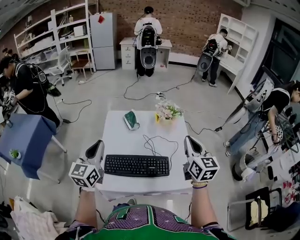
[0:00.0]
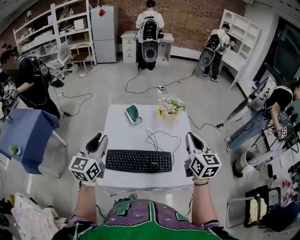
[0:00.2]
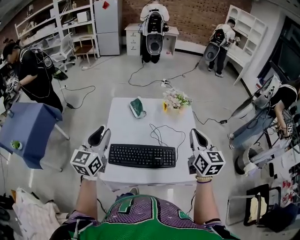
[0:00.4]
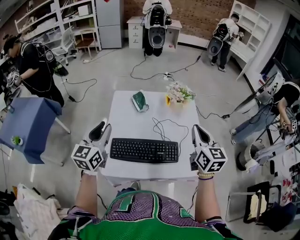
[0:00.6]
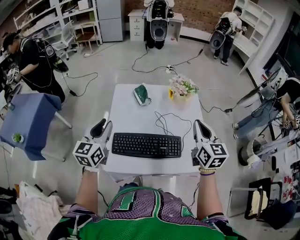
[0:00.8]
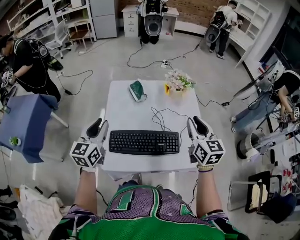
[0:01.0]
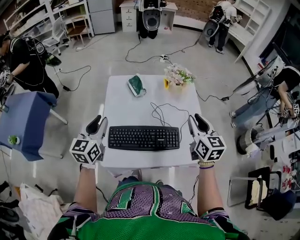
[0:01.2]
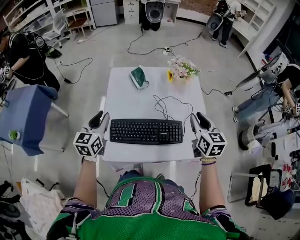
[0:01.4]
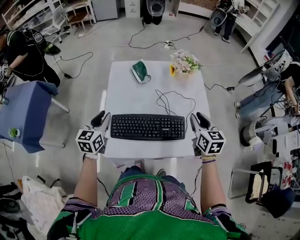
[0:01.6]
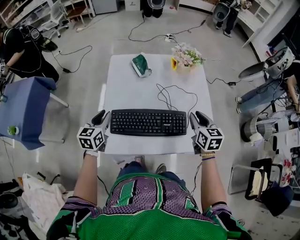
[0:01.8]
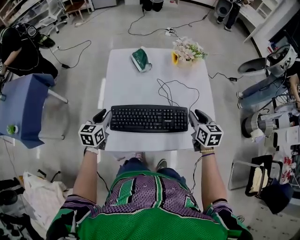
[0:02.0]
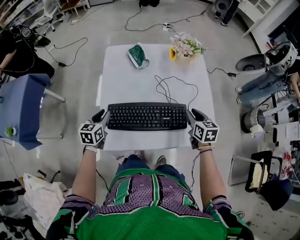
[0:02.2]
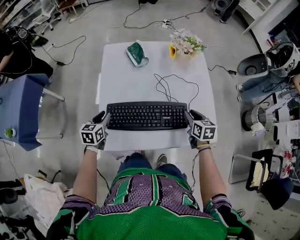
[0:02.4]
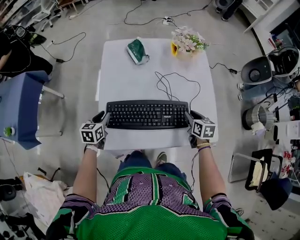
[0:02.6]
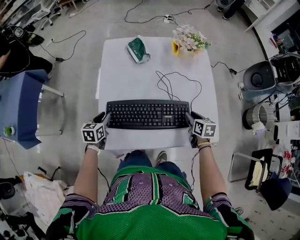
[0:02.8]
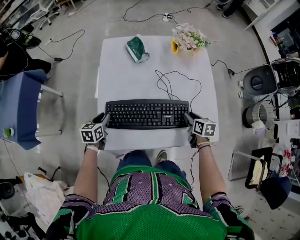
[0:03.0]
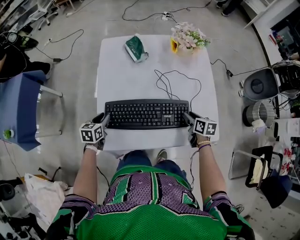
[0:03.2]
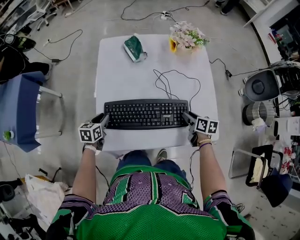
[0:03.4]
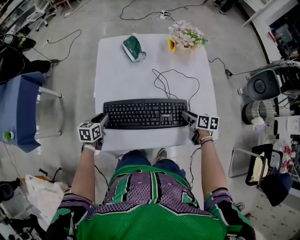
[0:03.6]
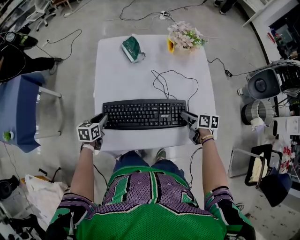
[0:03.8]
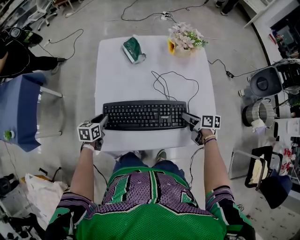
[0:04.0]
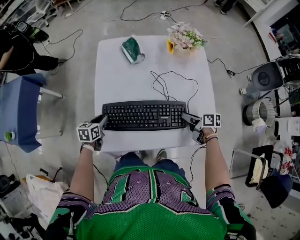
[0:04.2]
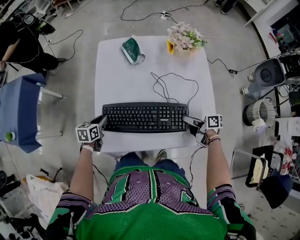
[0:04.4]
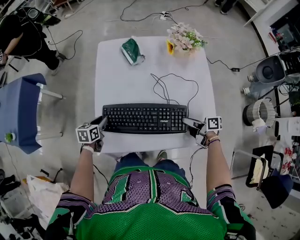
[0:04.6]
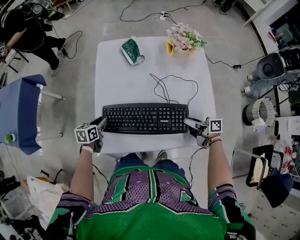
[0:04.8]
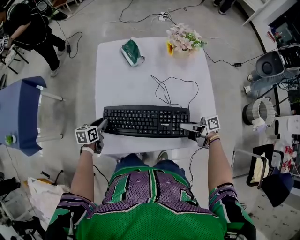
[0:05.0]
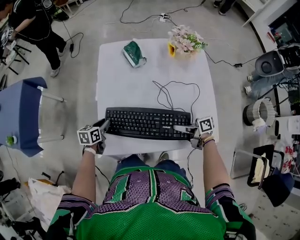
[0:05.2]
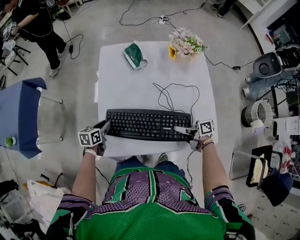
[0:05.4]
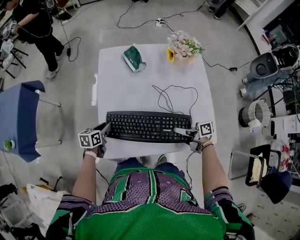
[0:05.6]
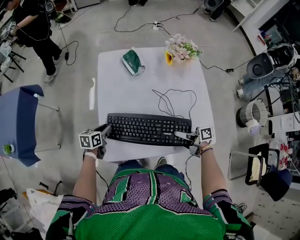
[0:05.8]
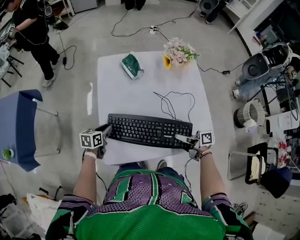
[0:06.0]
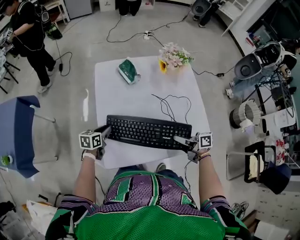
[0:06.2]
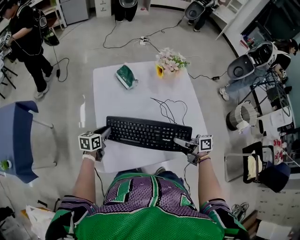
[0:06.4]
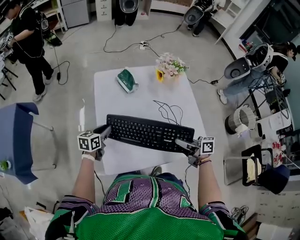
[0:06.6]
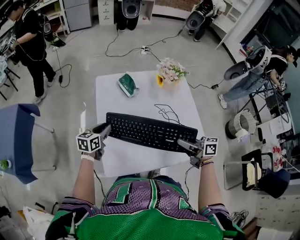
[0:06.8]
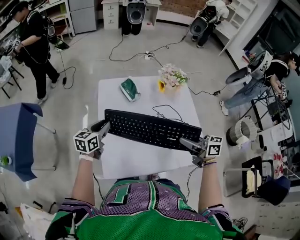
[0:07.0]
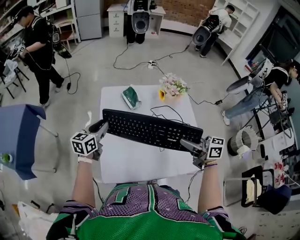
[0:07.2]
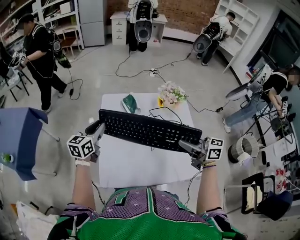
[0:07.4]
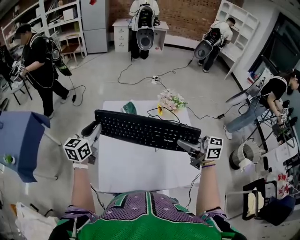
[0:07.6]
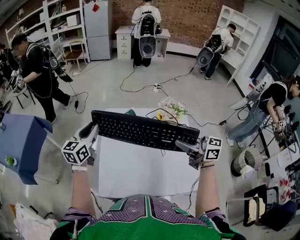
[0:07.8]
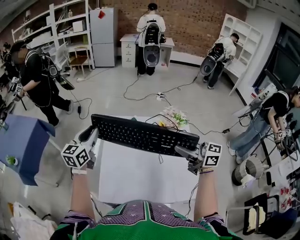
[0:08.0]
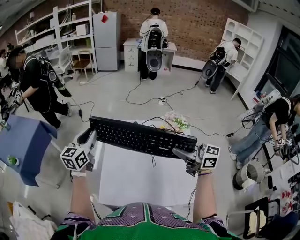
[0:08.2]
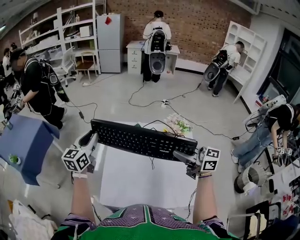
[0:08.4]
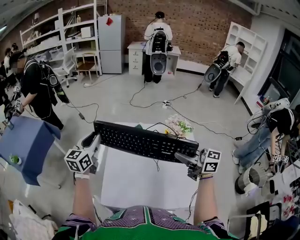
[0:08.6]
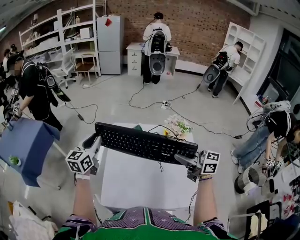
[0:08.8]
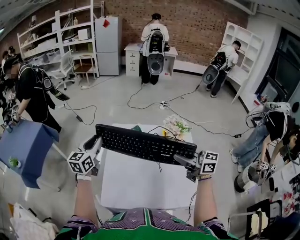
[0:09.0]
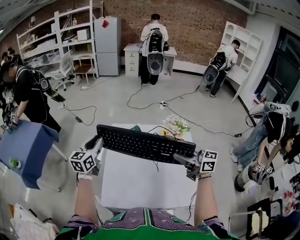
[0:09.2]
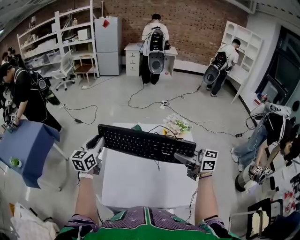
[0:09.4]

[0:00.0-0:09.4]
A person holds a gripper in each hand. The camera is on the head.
0:00.0 to 0:01.6: Both grippers move downward, roughly 20 cm. The left gripper opens. Meanwhile the right gripper opens its fingers.
0:01.6 to 0:03.2: Both grippers travel together downward, roughly 20 cm. The right gripper changes its angle by roughly 30 degrees. The left gripper changes its angle by roughly 30 degrees.
0:03.2 to 0:04.8: The right gripper heads upward, covering approximately 5 cm, and points its fingers approximately 30 degrees further upward.
0:04.8 to 0:06.2: The right gripper heads to the left, covering some 10 cm.
0:06.2 to 0:07.8: Both grippers travel together upward, about 30 cm. The left gripper angles its fingers upward, by roughly 30 degrees. Meanwhile the right gripper rotates around the line of its fingers by roughly 40 degrees, counterclockwise from behind.
0:07.8 to 0:09.4: The grippers make only small movements.

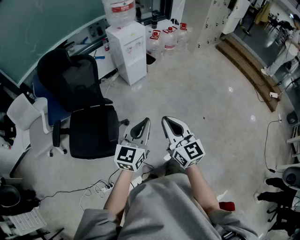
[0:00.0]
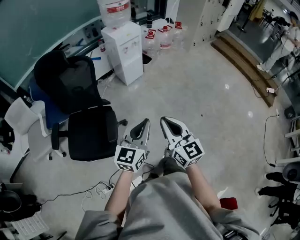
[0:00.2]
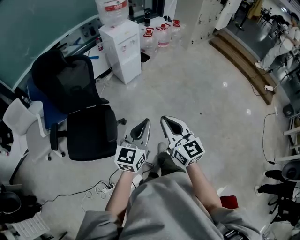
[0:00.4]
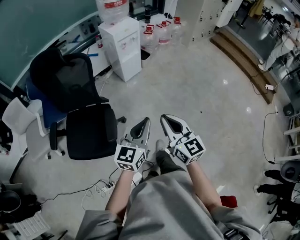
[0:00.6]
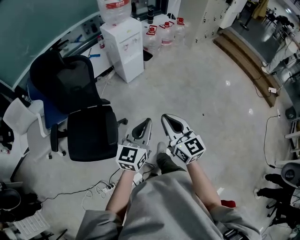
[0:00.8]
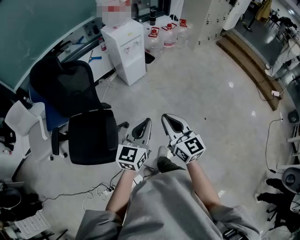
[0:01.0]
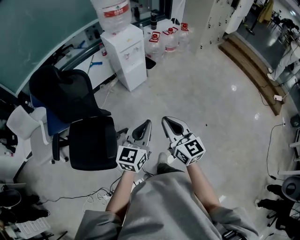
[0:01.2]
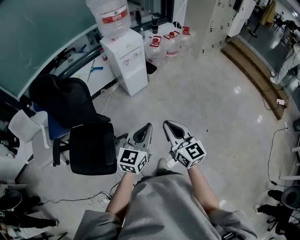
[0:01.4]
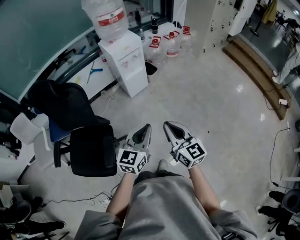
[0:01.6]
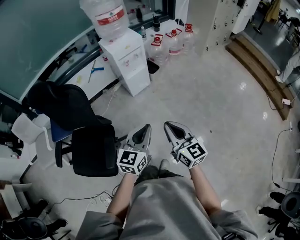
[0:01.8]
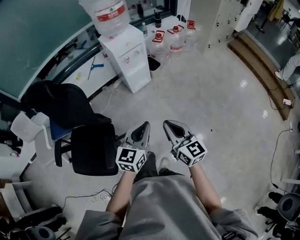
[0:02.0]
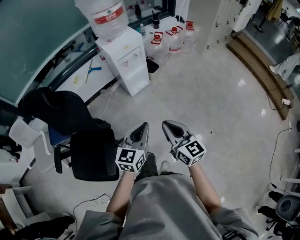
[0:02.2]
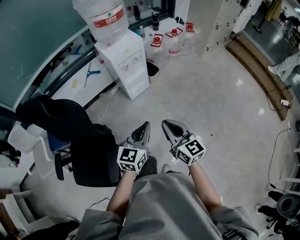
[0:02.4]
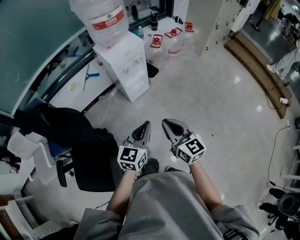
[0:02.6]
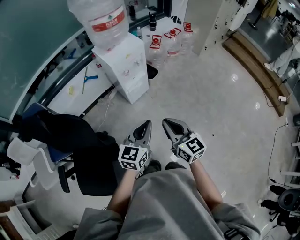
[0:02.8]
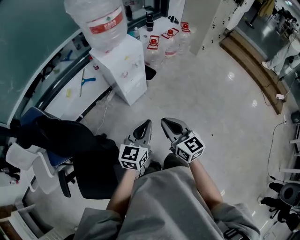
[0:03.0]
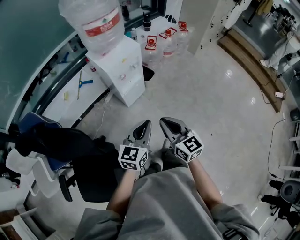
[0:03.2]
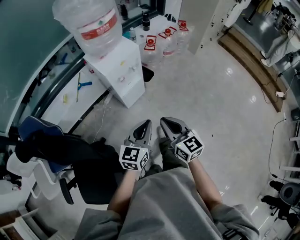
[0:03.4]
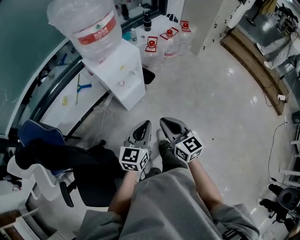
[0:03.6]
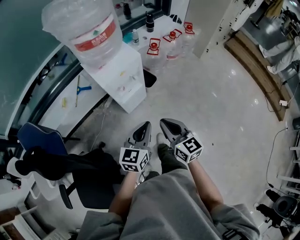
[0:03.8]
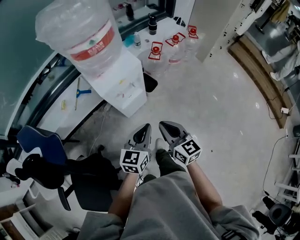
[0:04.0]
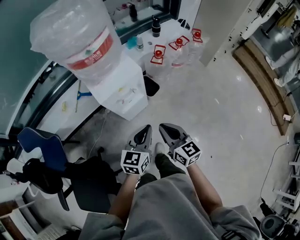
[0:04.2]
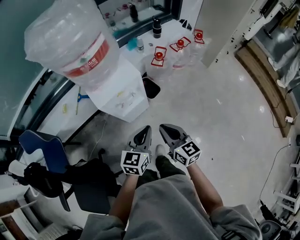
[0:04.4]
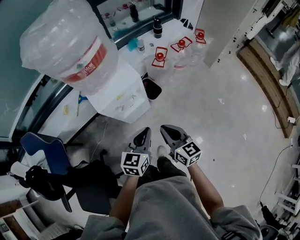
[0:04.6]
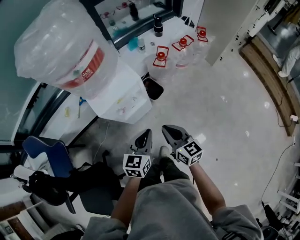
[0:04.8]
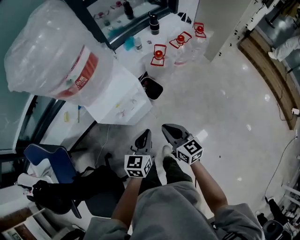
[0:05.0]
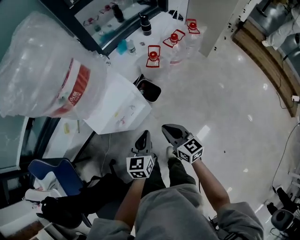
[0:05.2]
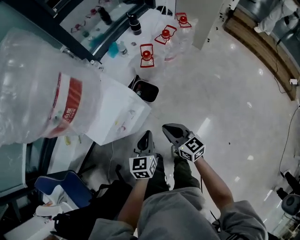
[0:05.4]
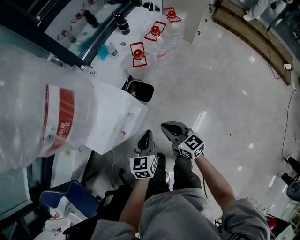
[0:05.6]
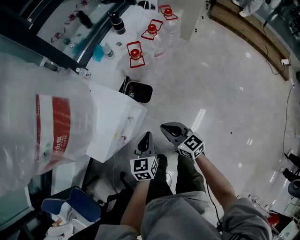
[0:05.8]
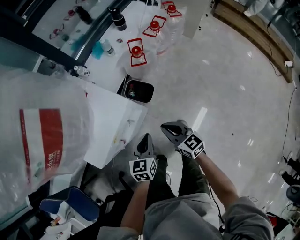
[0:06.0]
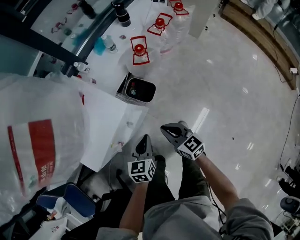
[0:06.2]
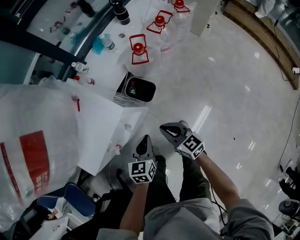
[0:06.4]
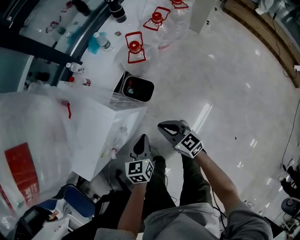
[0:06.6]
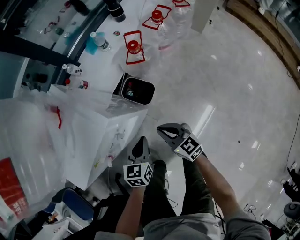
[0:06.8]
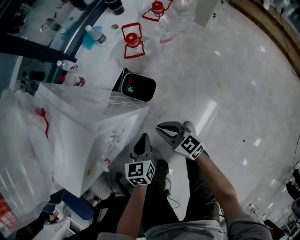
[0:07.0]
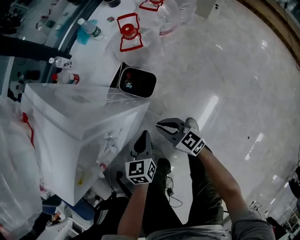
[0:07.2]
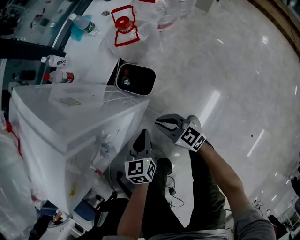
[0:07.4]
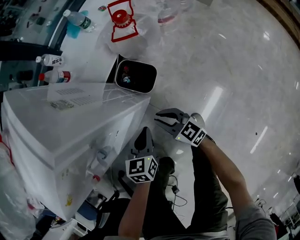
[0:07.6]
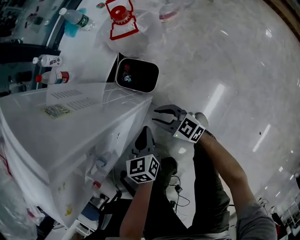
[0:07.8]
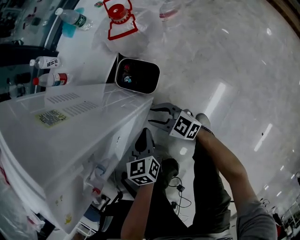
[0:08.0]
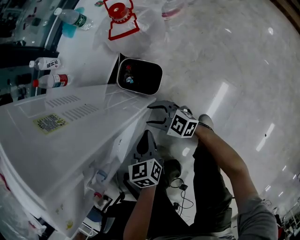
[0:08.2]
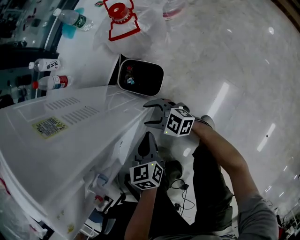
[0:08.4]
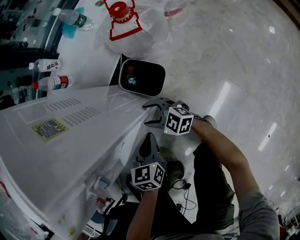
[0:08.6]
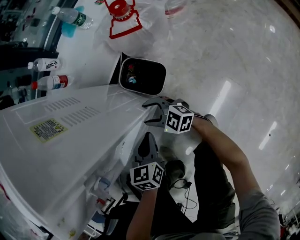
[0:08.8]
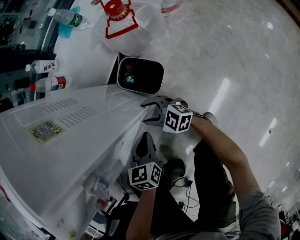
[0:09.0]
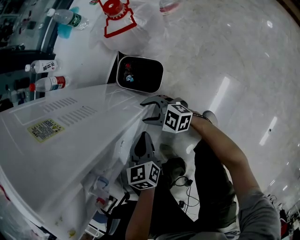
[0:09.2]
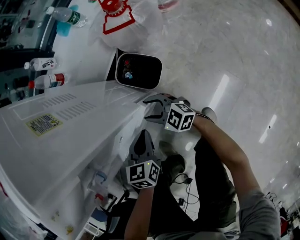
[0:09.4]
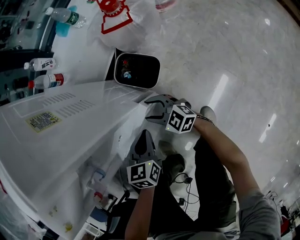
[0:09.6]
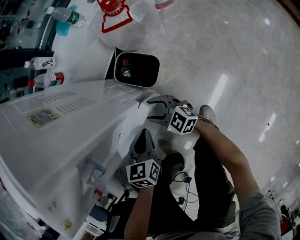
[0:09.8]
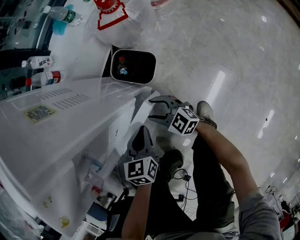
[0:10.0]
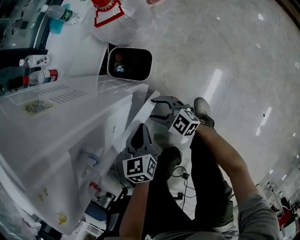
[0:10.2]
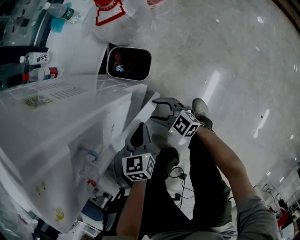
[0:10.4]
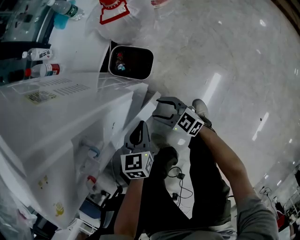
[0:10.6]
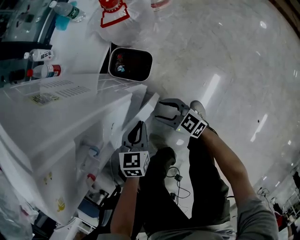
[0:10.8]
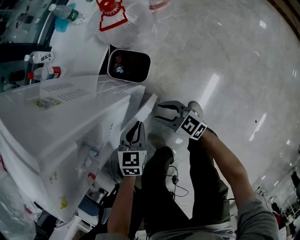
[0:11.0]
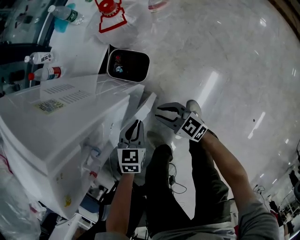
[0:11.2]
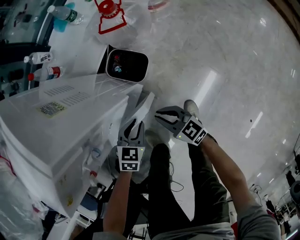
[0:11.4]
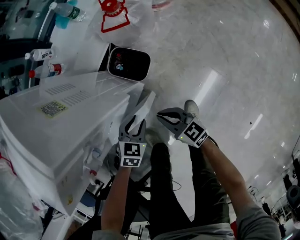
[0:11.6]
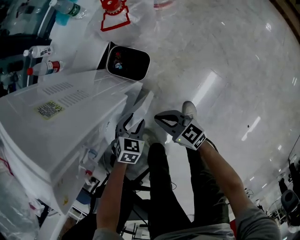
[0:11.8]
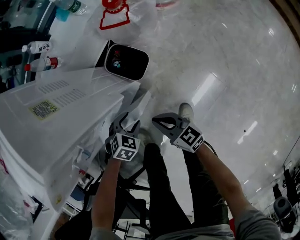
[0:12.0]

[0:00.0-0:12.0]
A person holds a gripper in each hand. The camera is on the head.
0:00.0 to 0:01.6: Both grippers travel together forward, approximately 20 cm.
0:01.6 to 0:03.0: The two grippers go approximately 25 cm forward.
0:03.0 to 0:04.4: Both grippers travel together forward, about 30 cm.
0:04.4 to 0:06.0: Both grippers move downward and forward, roughly 25 cm.
0:06.0 to 0:07.6: The two grippers go approximately 25 cm downward.
0:07.6 to 0:09.0: The right gripper heads forward, downward and to the left, covering approximately 15 cm, changes its angle by about 30 degrees, and opens its fingers; the left gripper is displaced downward by about 5 cm.
0:09.0 to 0:10.4: The right gripper travels backward by about 10 cm, and turns by some 20 degrees.
0:10.4 to 0:12.0: The left gripper changes place by some 5 cm, rotates roughly 40 degrees, and opens its fingers. The right gripper moves upward and to the right, roughly 10 cm, changes its angle by approximately 30 degrees, and closes up.

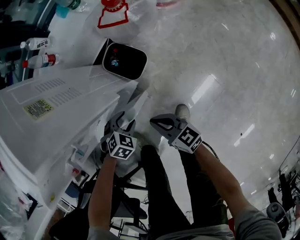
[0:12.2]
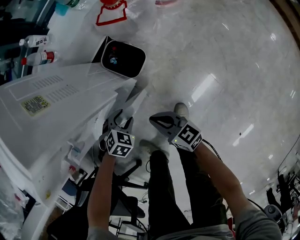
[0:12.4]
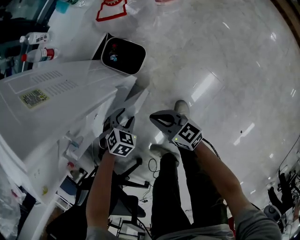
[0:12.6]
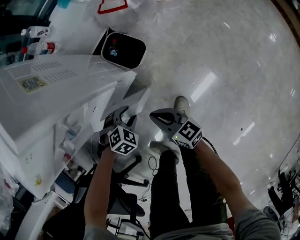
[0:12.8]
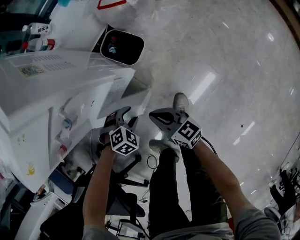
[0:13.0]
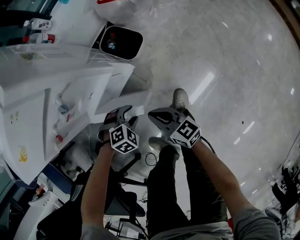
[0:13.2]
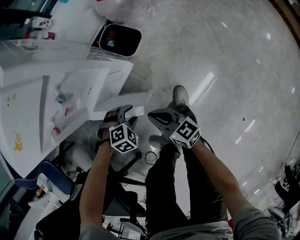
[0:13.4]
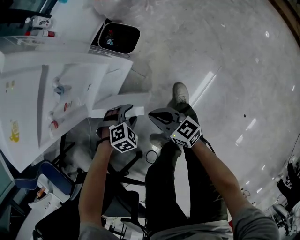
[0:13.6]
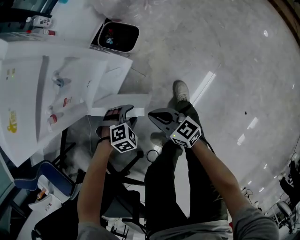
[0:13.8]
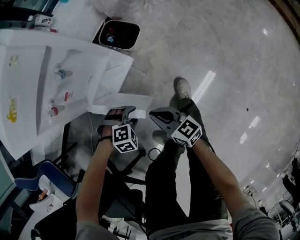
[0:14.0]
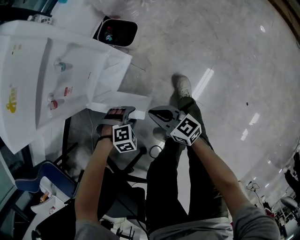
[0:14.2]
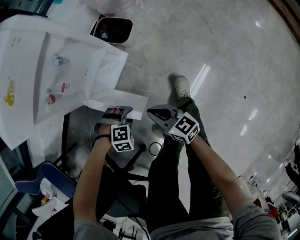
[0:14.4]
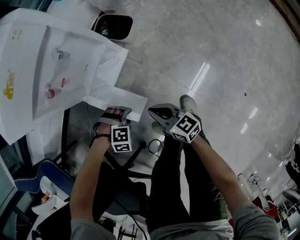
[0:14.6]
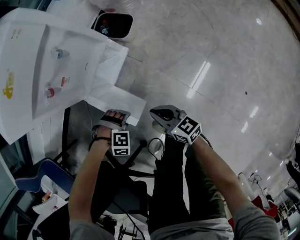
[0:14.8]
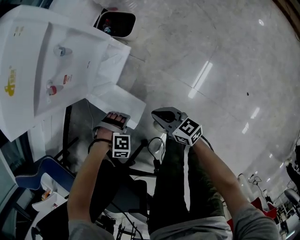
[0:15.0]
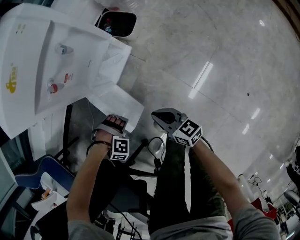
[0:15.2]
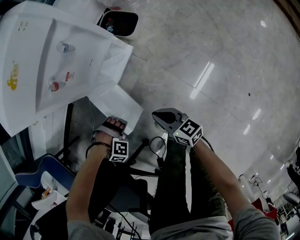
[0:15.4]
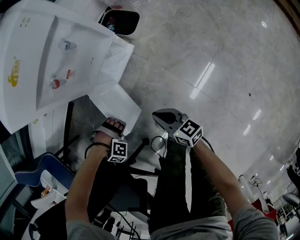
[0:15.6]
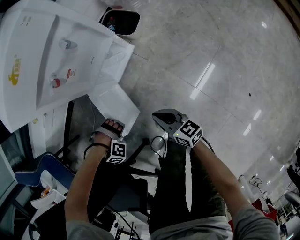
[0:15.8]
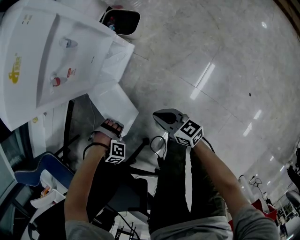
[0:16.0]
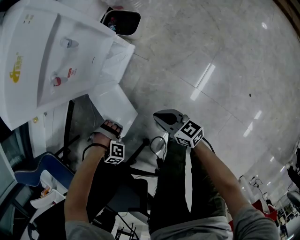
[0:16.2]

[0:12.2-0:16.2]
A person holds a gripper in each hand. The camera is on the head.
0:12.2 to 0:13.6: The left gripper changes place by about 15 cm, and swivels about 30 degrees; the right gripper shifts by about 15 cm.
0:13.6 to 0:14.8: The left gripper changes place by approximately 15 cm, and changes its angle by roughly 40 degrees. The right gripper changes place by about 10 cm.
0:14.8 to 0:16.2: The left gripper changes place by about 15 cm, and turns by about 30 degrees.
